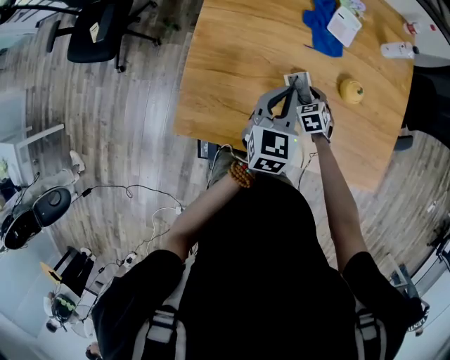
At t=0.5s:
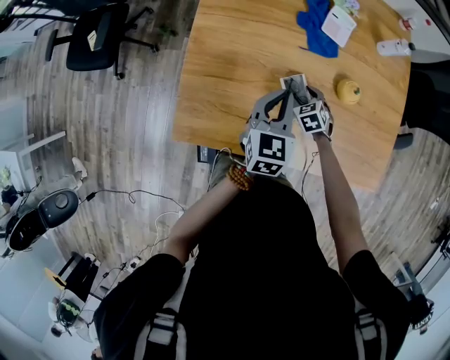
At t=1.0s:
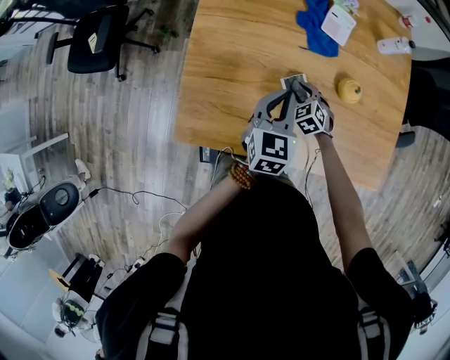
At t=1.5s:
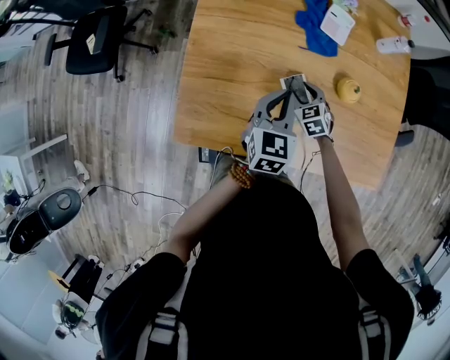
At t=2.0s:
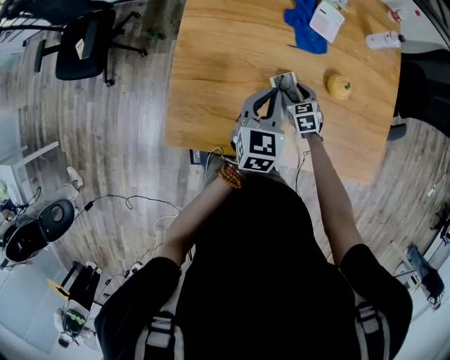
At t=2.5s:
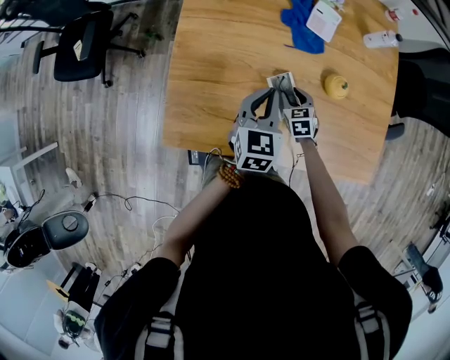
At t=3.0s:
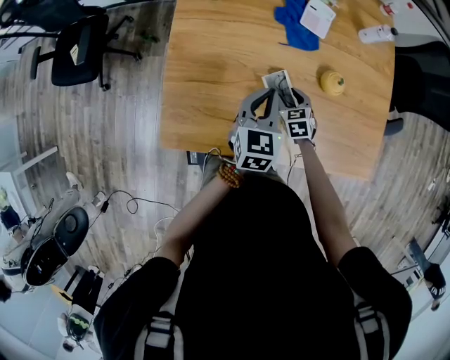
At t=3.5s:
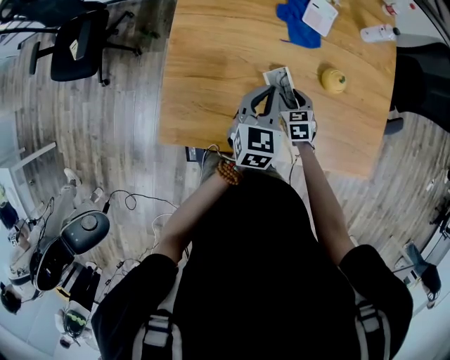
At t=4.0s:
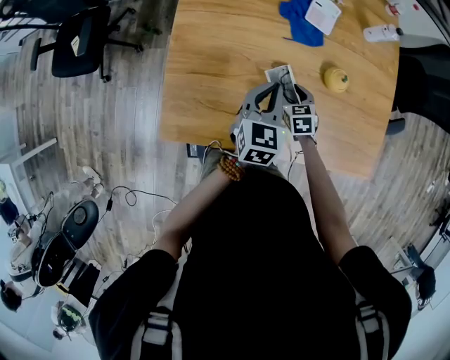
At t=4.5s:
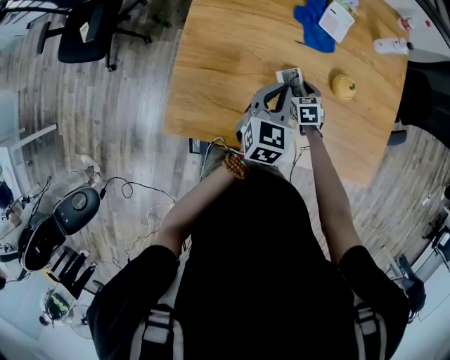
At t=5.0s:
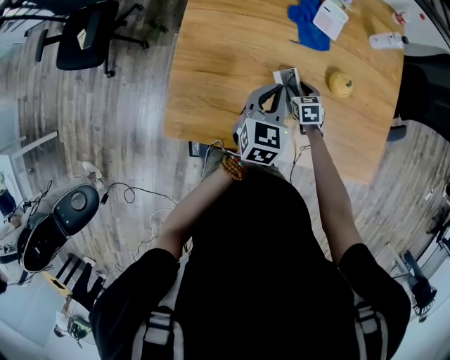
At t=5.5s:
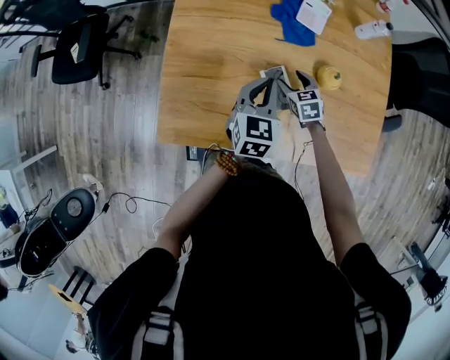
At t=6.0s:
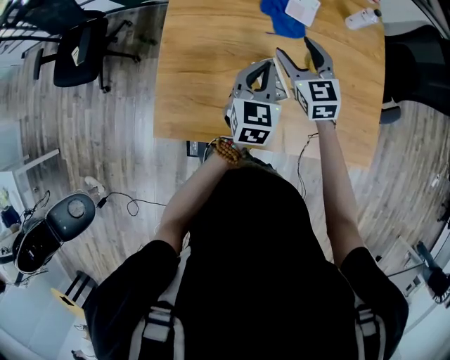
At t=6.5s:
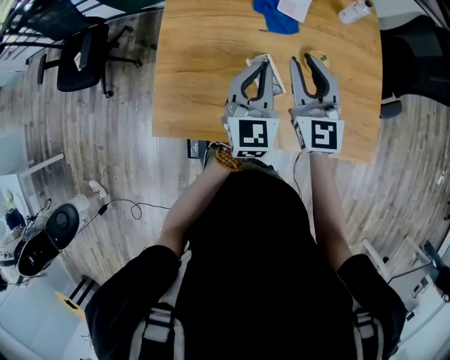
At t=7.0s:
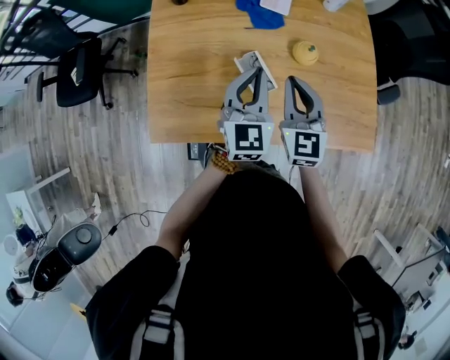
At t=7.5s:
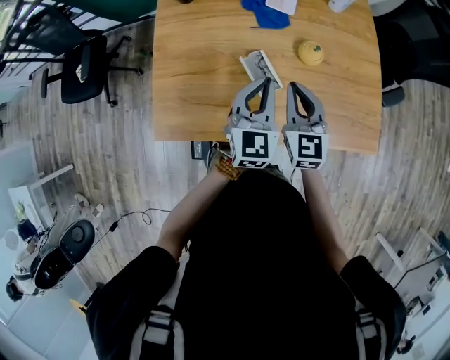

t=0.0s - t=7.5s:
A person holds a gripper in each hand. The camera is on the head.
t=0.0s - t=5.5s: The grippers stay close to where they were, moving slightly.
t=5.5s - t=7.5s: The right gripper is displaced upward and backward by approximately 25 cm, angles its fingers upward, by some 30 degrees, and closes its fingers. The left gripper travels backward, upward and to the right by about 10 cm.

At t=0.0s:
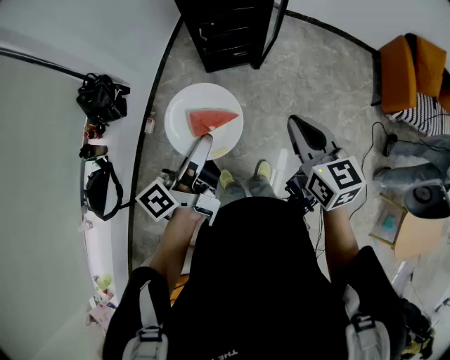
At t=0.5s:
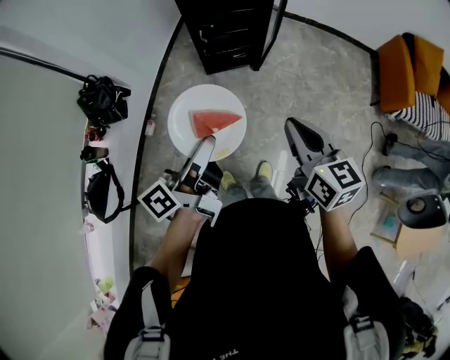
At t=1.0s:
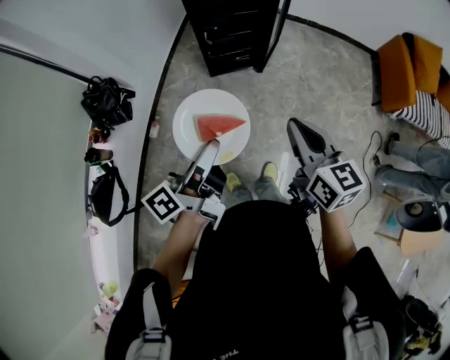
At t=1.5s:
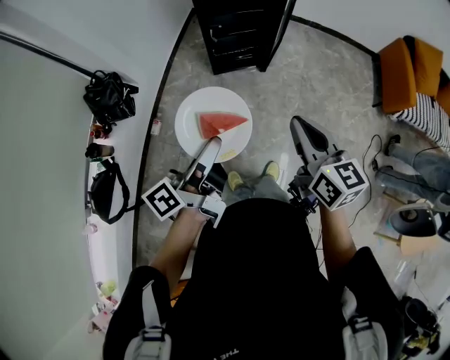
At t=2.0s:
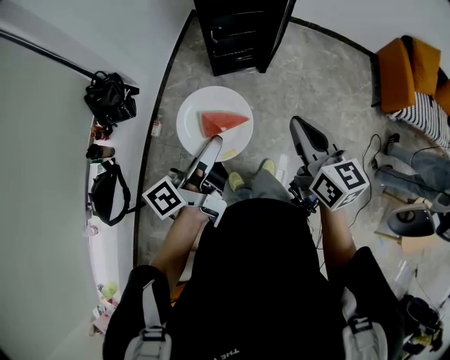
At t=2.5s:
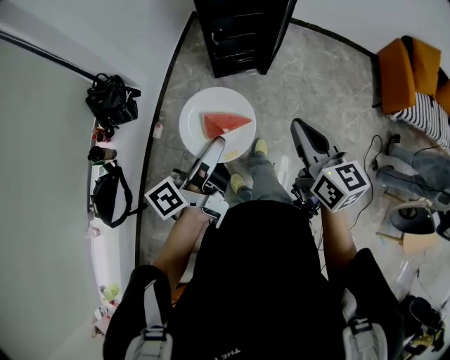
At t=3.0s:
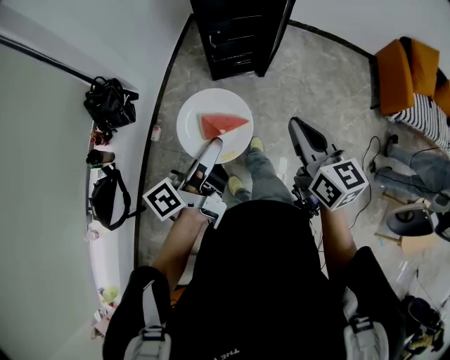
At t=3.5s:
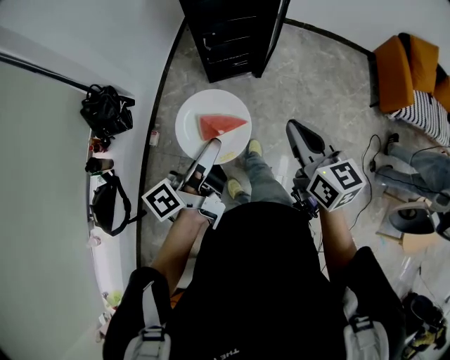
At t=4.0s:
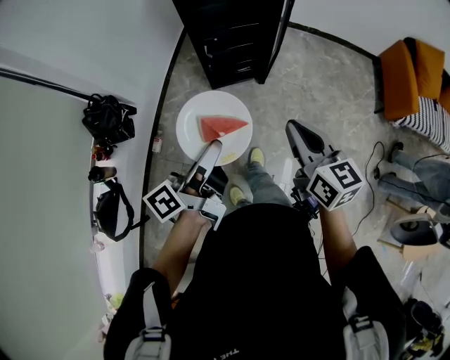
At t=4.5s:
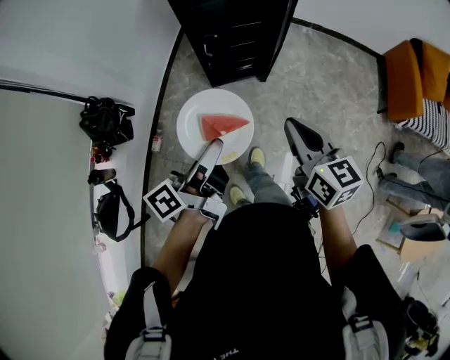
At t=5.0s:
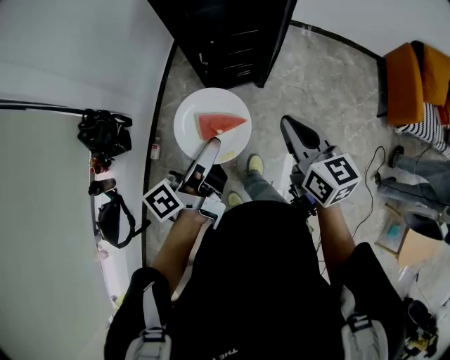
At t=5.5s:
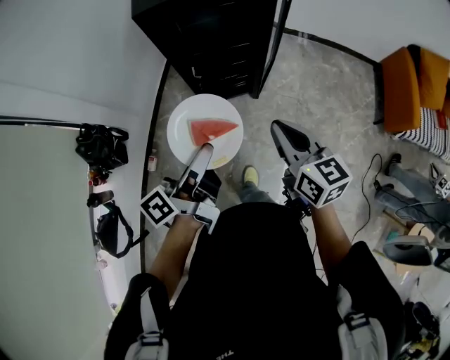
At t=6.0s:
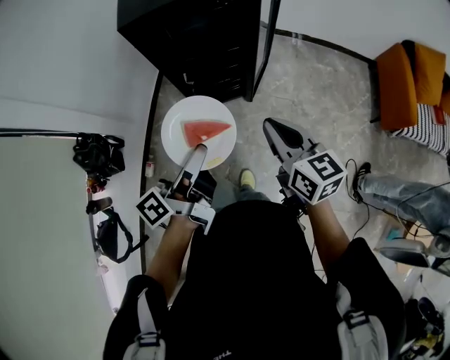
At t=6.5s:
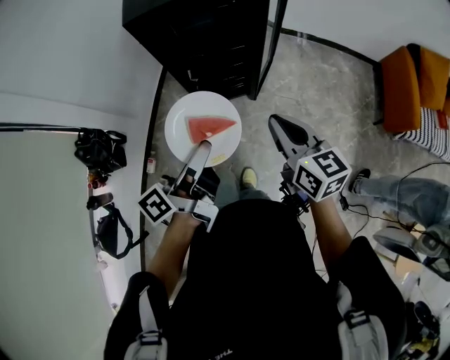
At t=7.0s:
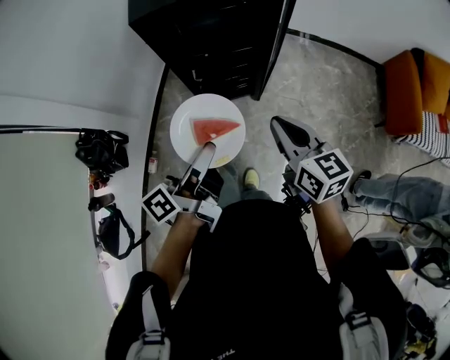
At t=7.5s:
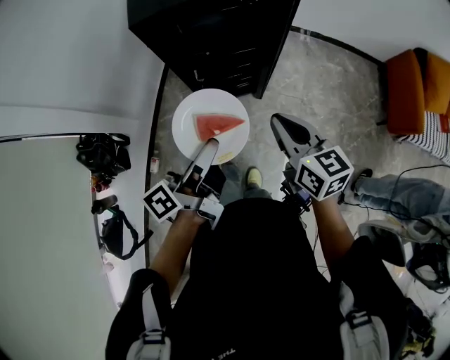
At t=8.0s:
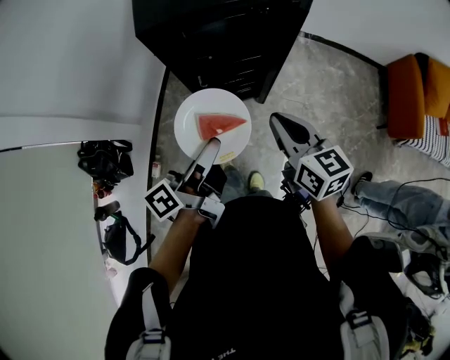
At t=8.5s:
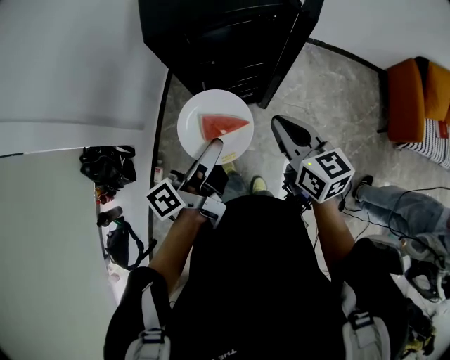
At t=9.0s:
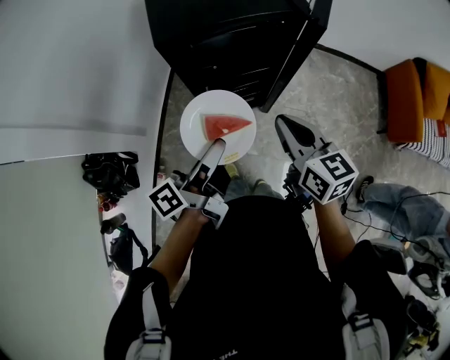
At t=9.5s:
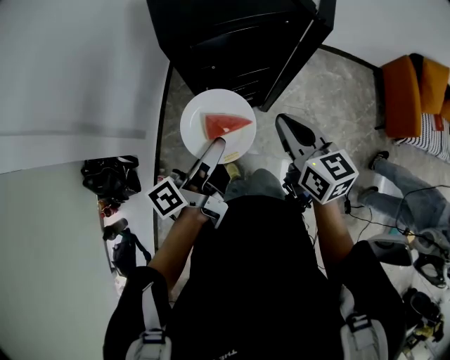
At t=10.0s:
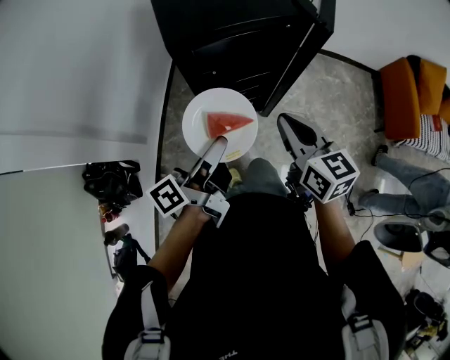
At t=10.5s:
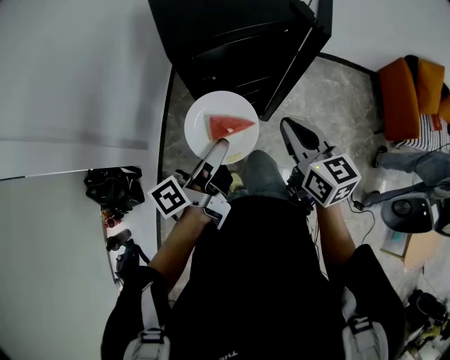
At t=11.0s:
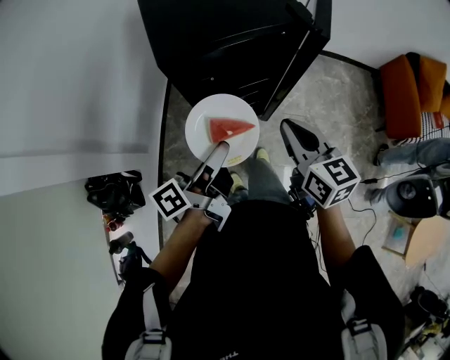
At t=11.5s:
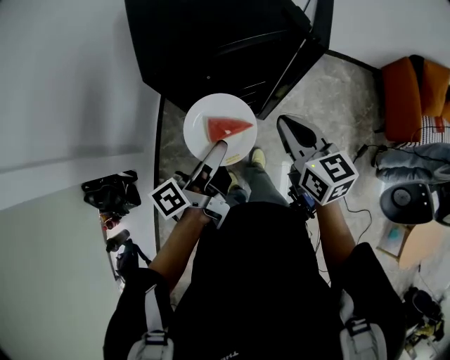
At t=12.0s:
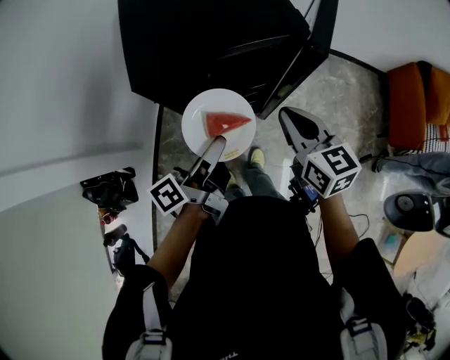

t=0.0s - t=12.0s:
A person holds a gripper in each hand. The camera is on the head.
t=0.0s - t=2.0s: The grippers both shift to the left by approximately 5 cm.
t=2.0s - t=4.0s: The two grippers go about 10 cm forward.
t=4.0s - t=6.0s: The two grippers go approximately 15 cm forward.
t=6.0s - t=8.0s: Both grippers travel together forward, some 15 cm.
t=8.0s - t=10.0s: The right gripper shifts by some 5 cm. The left gripper travels forward by about 5 cm.
t=10.0s - t=12.0s: Both grippers travel together forward and to the right, about 15 cm.

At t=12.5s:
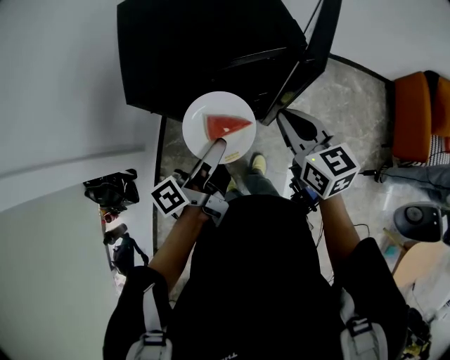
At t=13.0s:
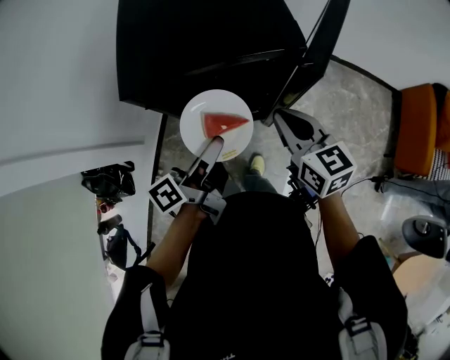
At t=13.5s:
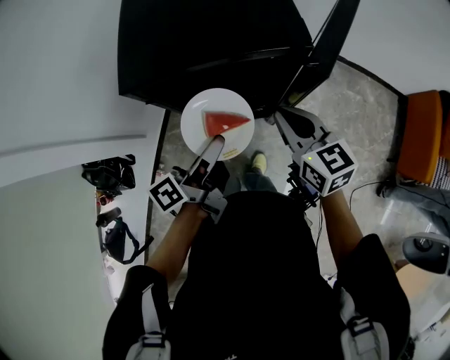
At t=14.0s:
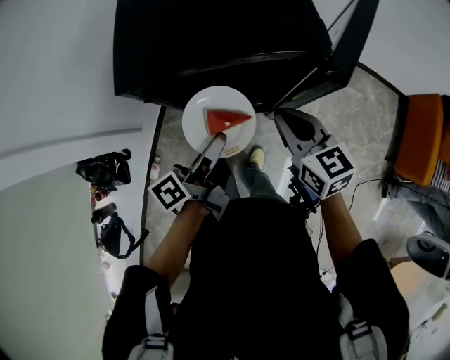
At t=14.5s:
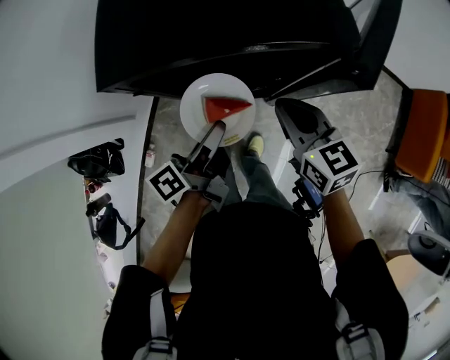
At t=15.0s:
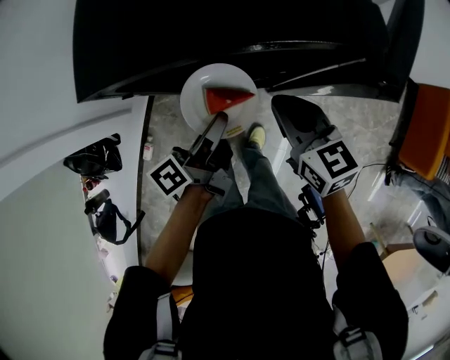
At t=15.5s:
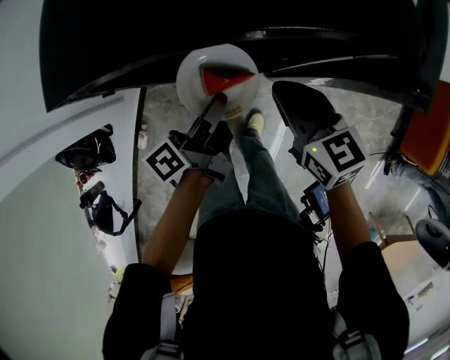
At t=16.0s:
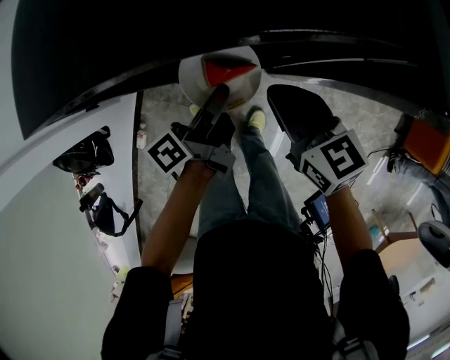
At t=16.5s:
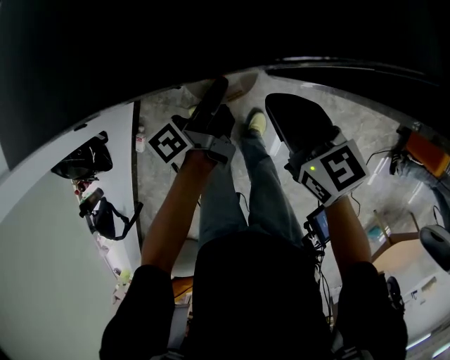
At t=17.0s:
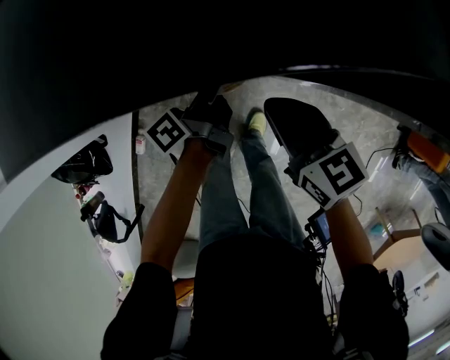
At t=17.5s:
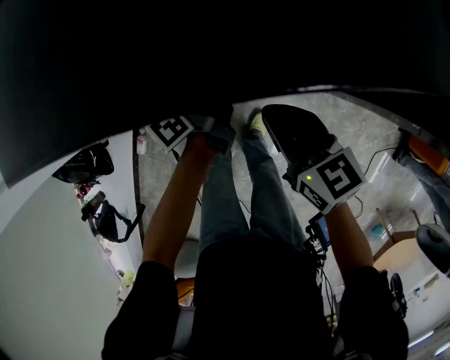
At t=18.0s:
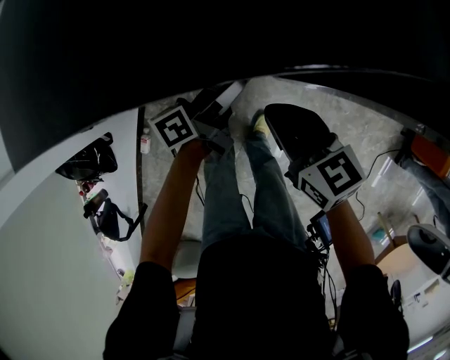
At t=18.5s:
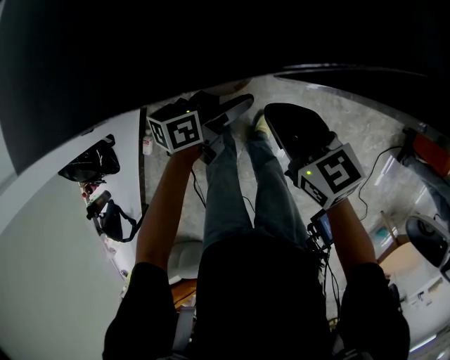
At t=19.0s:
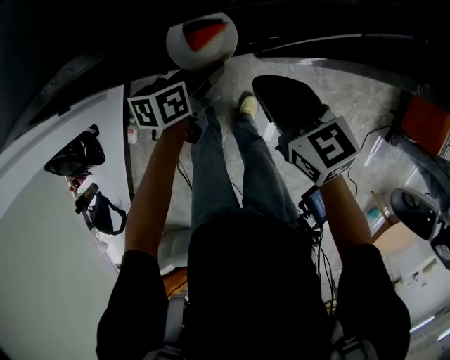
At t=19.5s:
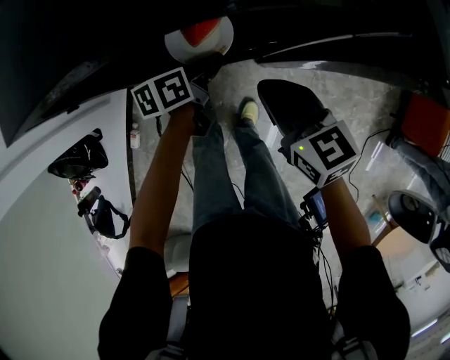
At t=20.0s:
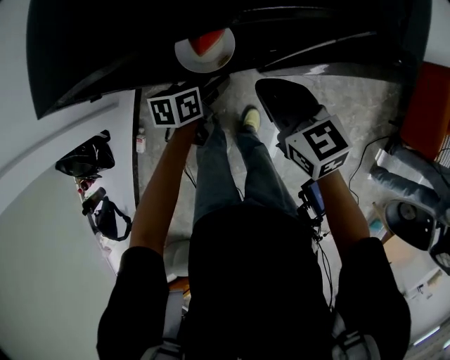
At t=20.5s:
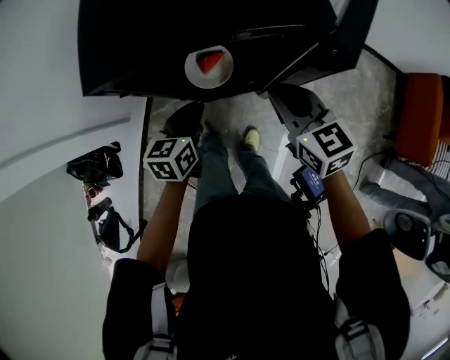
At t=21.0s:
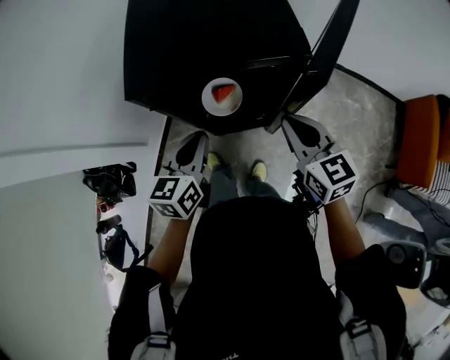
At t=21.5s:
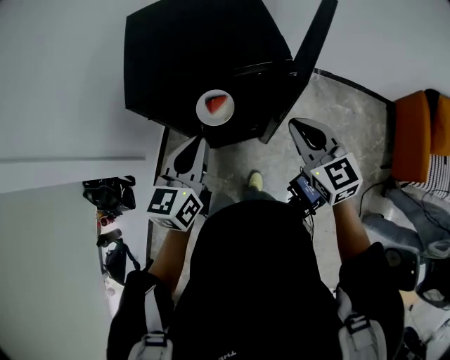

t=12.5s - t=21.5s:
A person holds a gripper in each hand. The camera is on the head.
t=12.5s - t=14.5s: Both grippers travel together downward, roughly 10 cm.
t=14.5s - t=17.0s: The left gripper moves downward and forward, about 20 cm, while the right gripper goes some 15 cm downward.
t=17.0s - t=19.5s: The left gripper changes its angle by some 40 degrees, and opens, then closes again.
t=19.5s - t=21.5s: The left gripper goes some 35 cm upward, and swivels some 50 degrees; the right gripper heads upward and to the right, covering approximately 25 cm, and turns by approximately 20 degrees.
